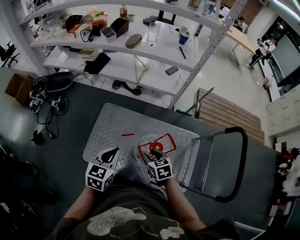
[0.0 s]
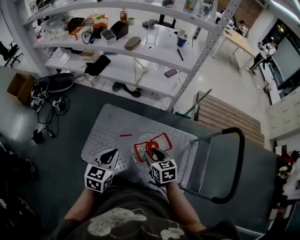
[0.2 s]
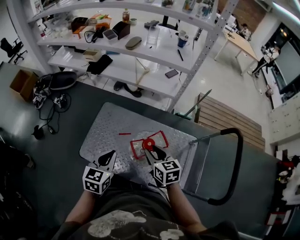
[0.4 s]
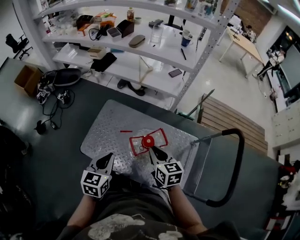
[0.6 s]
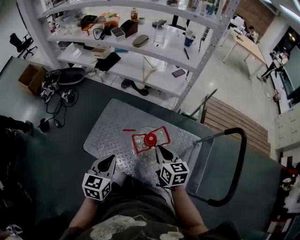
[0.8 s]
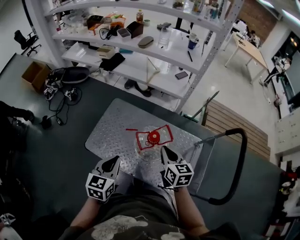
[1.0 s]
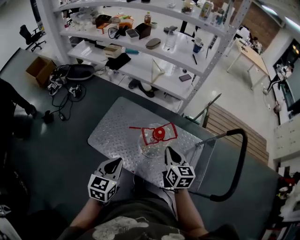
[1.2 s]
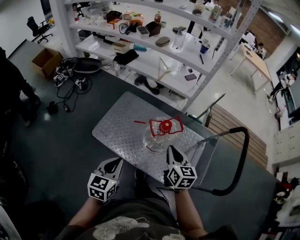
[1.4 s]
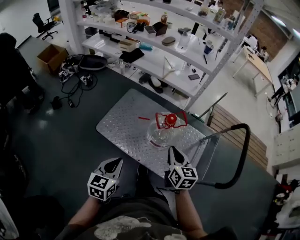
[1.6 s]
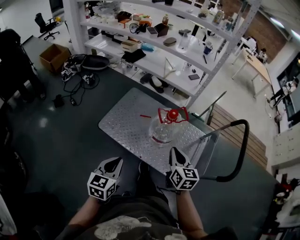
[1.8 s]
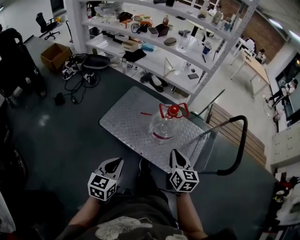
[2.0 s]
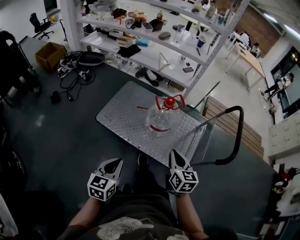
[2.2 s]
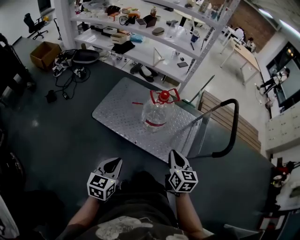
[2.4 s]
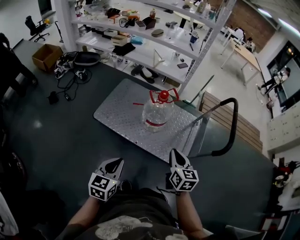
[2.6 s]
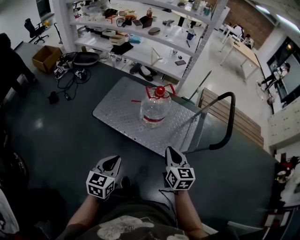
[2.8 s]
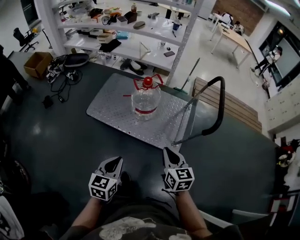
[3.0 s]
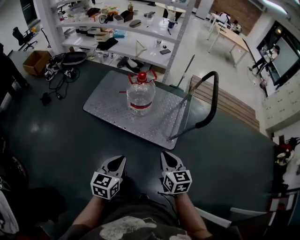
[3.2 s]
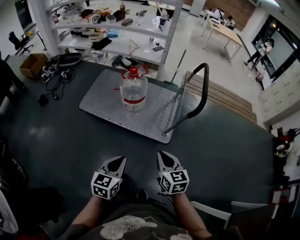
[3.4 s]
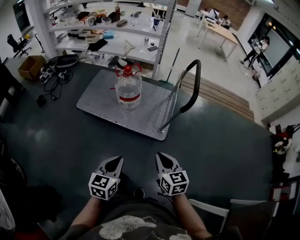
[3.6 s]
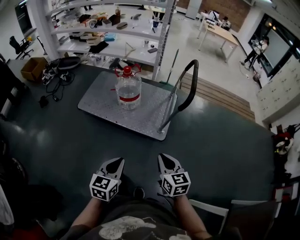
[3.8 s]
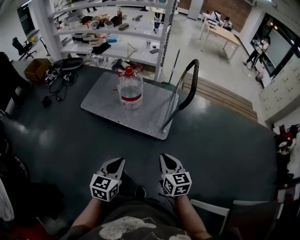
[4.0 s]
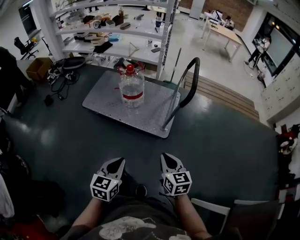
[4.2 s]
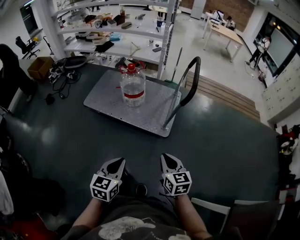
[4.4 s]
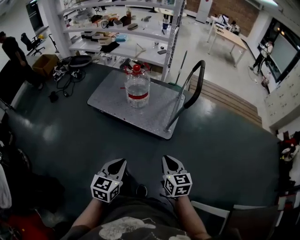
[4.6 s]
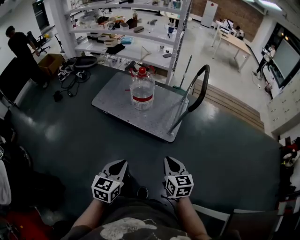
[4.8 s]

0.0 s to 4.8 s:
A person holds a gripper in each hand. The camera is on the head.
0.0 to 1.6 s: The right gripper travels backward and upward by roughly 25 cm, changes its angle by some 30 degrees, and closes its fingers. The left gripper shifts some 30 cm backward.
1.6 to 3.2 s: The left gripper is displaced backward and to the right by approximately 30 cm, while the right gripper travels backward by approximately 35 cm.
3.2 to 4.8 s: The grippers both shift backward and to the right by some 20 cm.

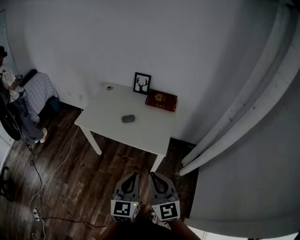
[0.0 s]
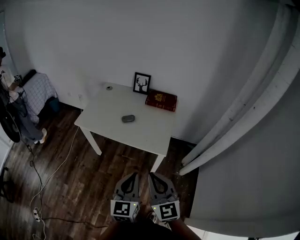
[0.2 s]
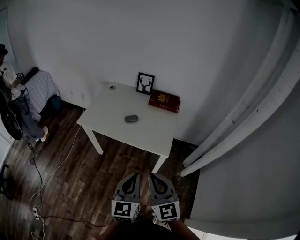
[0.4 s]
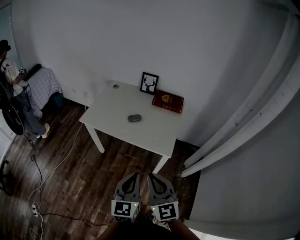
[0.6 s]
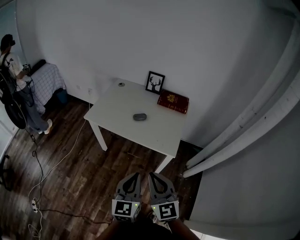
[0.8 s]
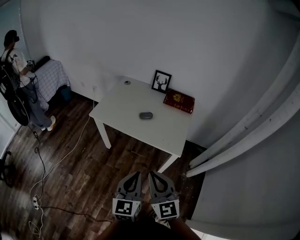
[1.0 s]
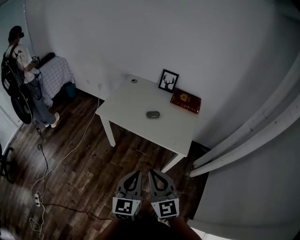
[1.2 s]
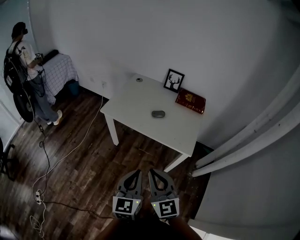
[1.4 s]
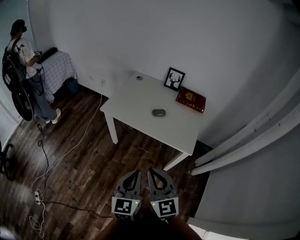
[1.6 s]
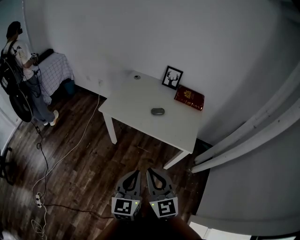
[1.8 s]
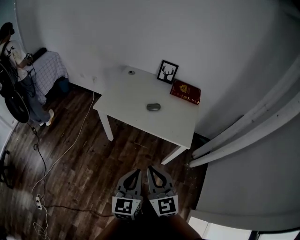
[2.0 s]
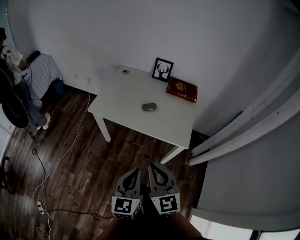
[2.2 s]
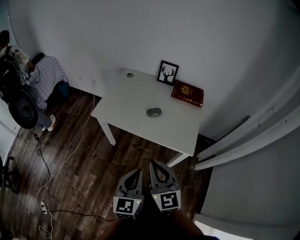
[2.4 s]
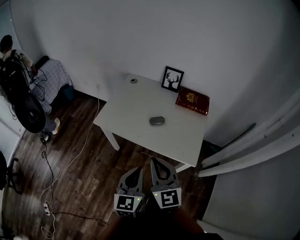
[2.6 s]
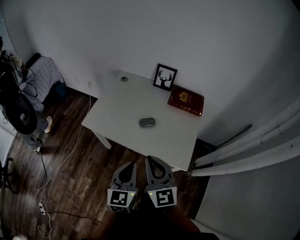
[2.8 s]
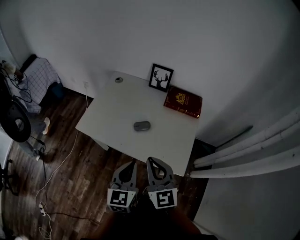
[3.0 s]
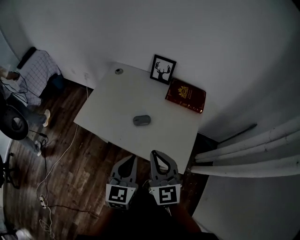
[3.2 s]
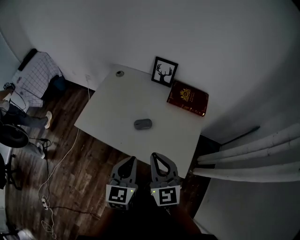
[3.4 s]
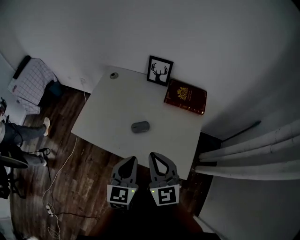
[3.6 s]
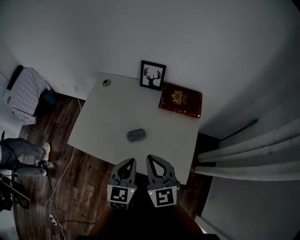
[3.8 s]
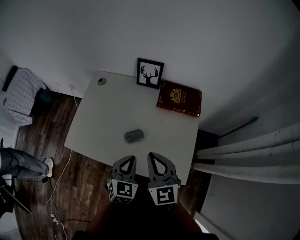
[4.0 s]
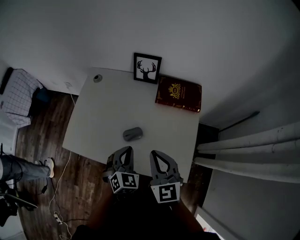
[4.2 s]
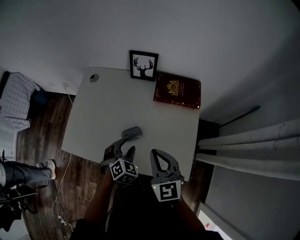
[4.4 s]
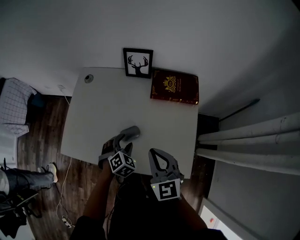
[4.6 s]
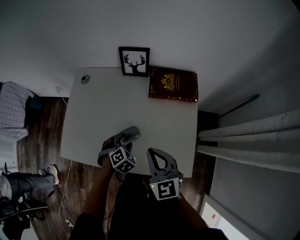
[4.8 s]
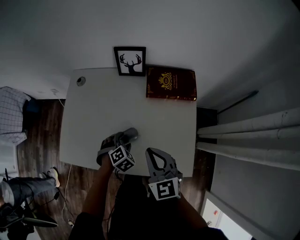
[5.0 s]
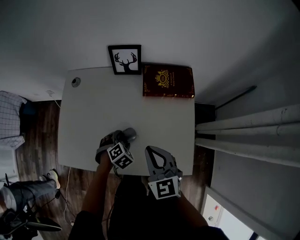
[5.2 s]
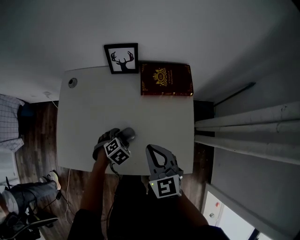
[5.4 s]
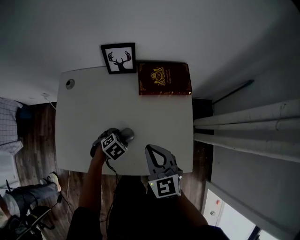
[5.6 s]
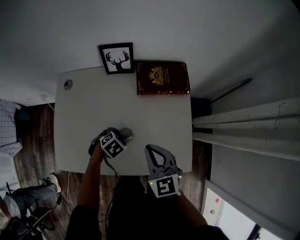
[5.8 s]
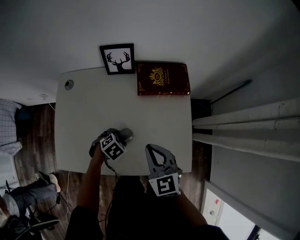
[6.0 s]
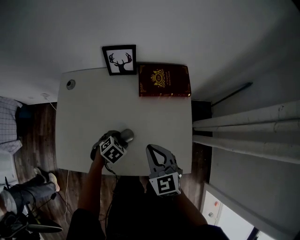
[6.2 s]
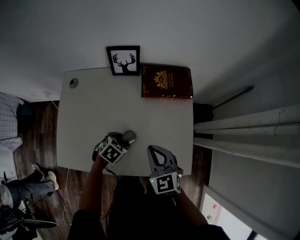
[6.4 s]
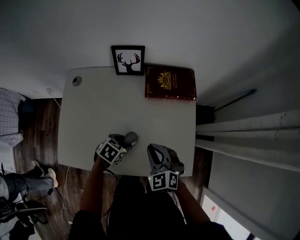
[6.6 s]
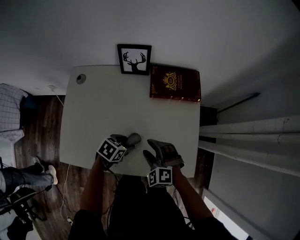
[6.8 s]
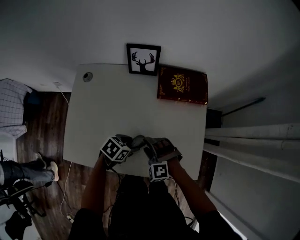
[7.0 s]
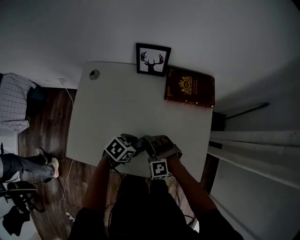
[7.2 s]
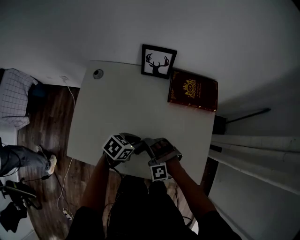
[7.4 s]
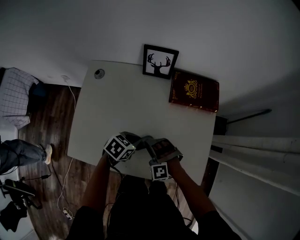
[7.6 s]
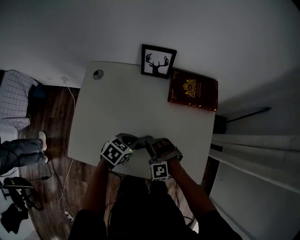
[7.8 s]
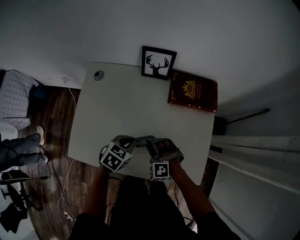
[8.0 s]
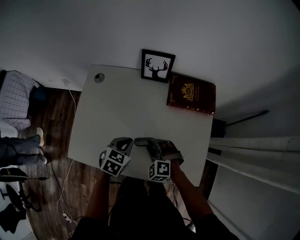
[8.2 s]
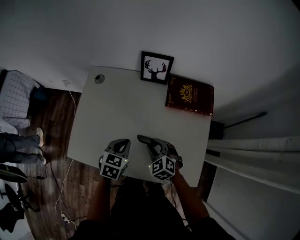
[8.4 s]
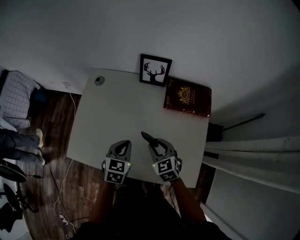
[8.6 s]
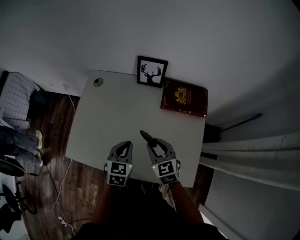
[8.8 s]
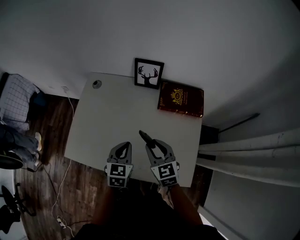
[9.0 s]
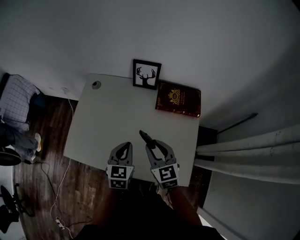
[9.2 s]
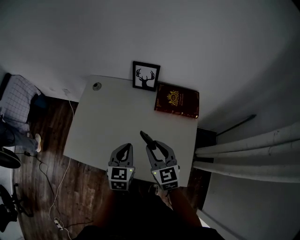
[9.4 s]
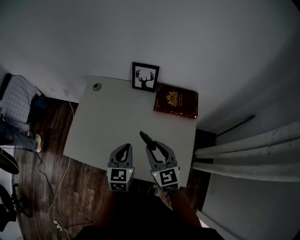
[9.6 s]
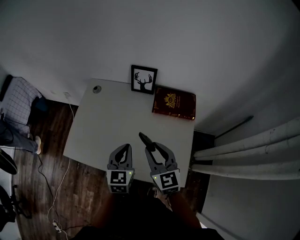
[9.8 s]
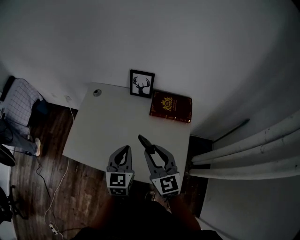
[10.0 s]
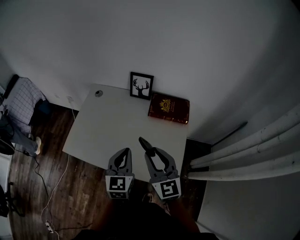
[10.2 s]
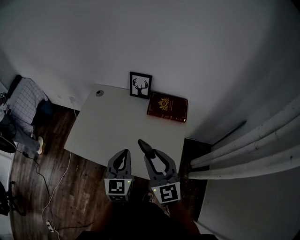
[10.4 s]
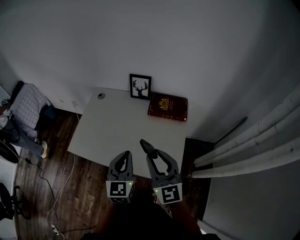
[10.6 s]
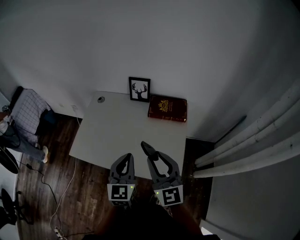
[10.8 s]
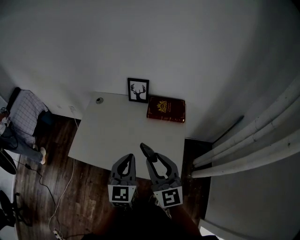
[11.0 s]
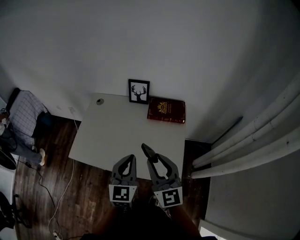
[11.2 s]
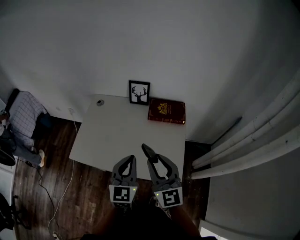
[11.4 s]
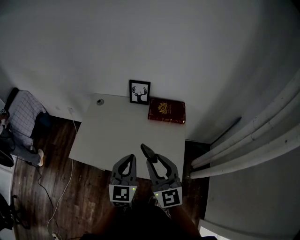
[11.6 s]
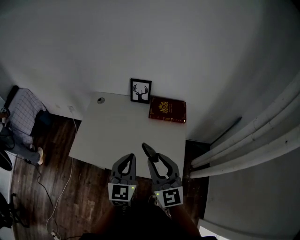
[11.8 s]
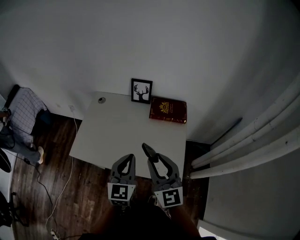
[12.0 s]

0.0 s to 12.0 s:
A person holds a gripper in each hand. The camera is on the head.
0.0 to 1.6 s: Both grippers travel together to the left, about 15 cm.
1.6 to 3.0 s: The grippers both shift forward and to the right by some 30 cm.
3.0 to 4.4 s: The right gripper is displaced forward and downward by some 15 cm, while the left gripper goes some 25 cm forward and downward, angles its fingers downward, by roughly 30 degrees, and opens up.
4.4 to 6.0 s: The right gripper ends up approximately 5 cm from where it was, while the left gripper shifts some 10 cm downward, and turns by roughly 40 degrees.
6.0 to 7.6 s: The left gripper shifts by approximately 5 cm, turns by some 30 degrees, and closes up, while the right gripper goes about 15 cm downward, twists about 70 degrees counterclockwise, seen from behind, and opens.
7.6 to 9.0 s: The two grippers go roughly 10 cm upward. The left gripper turns by about 50 degrees. Meanwhile the right gripper rotates around the line of its fingers by roughly 70 degrees, clockwise from behind.
9.0 to 10.4 s: The left gripper heads upward, backward and to the right, covering some 20 cm, and turns by approximately 20 degrees, while the right gripper goes approximately 25 cm upward and backward, and turns by approximately 30 degrees.
10.4 to 12.0 s: The right gripper changes place by approximately 5 cm, while the left gripper shifts by roughly 5 cm.

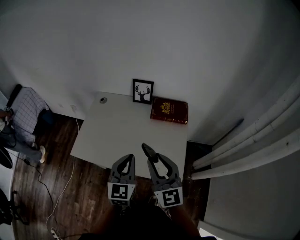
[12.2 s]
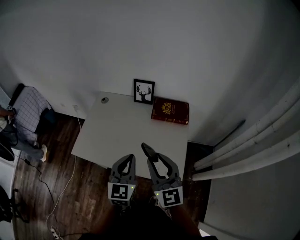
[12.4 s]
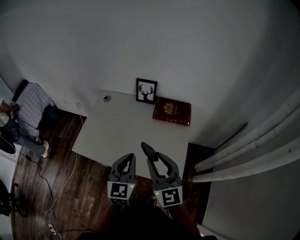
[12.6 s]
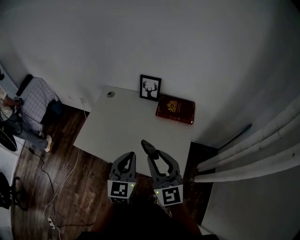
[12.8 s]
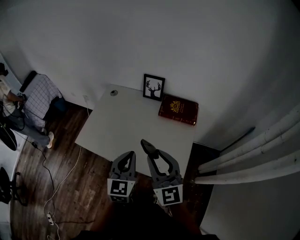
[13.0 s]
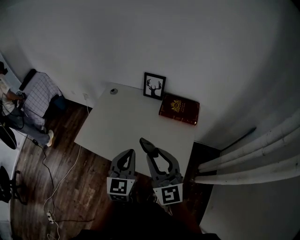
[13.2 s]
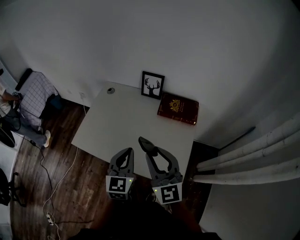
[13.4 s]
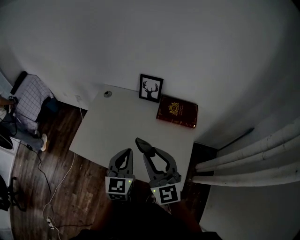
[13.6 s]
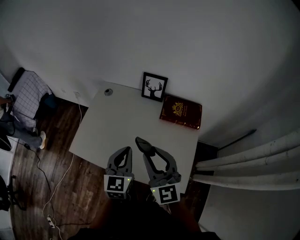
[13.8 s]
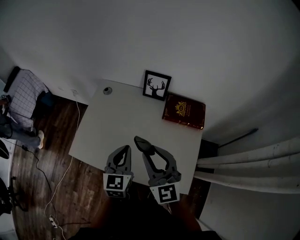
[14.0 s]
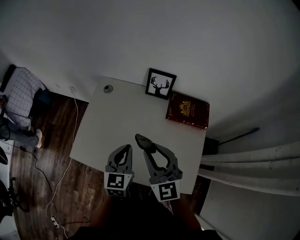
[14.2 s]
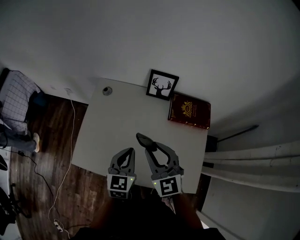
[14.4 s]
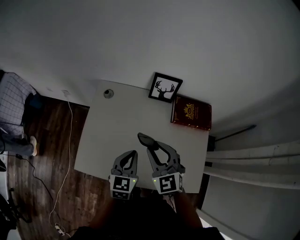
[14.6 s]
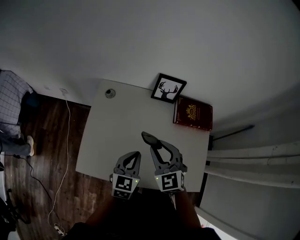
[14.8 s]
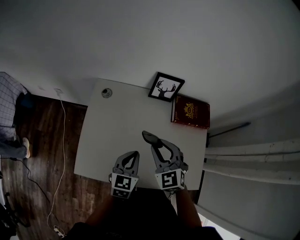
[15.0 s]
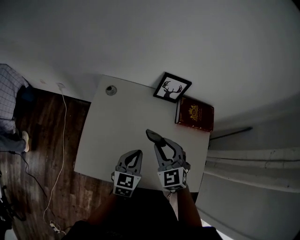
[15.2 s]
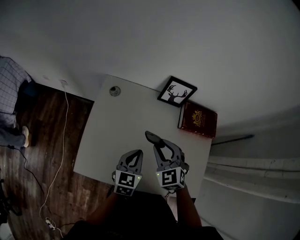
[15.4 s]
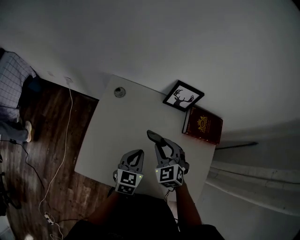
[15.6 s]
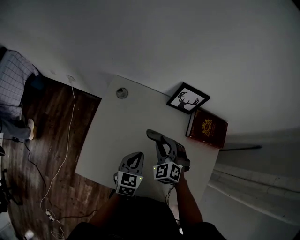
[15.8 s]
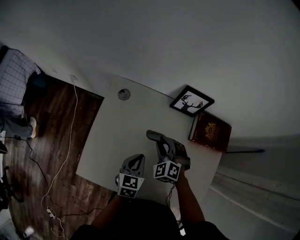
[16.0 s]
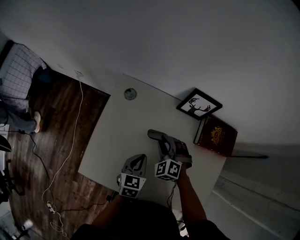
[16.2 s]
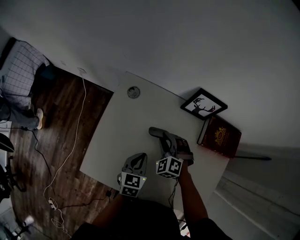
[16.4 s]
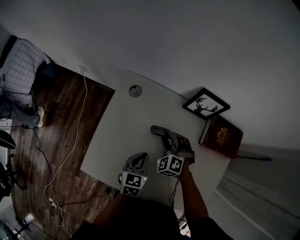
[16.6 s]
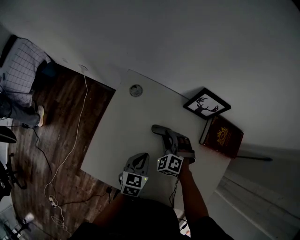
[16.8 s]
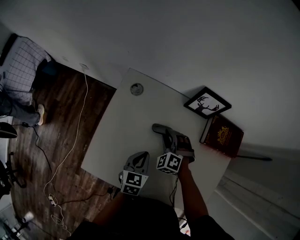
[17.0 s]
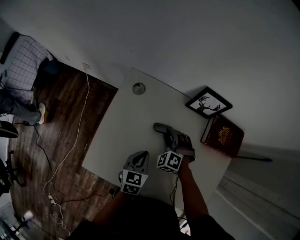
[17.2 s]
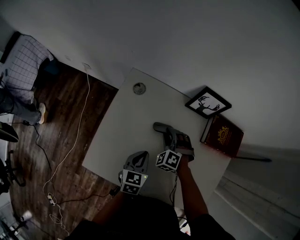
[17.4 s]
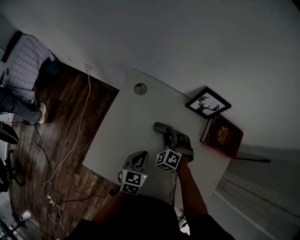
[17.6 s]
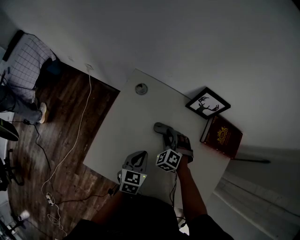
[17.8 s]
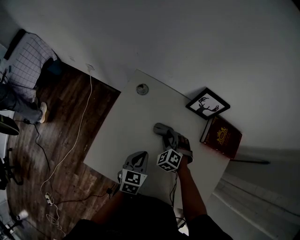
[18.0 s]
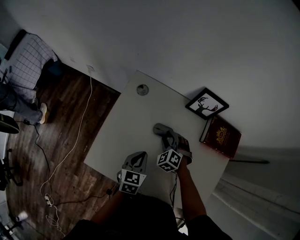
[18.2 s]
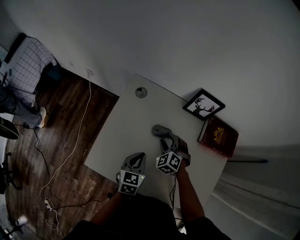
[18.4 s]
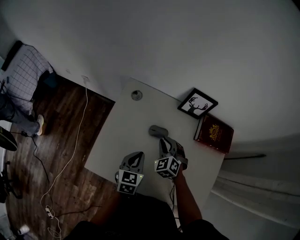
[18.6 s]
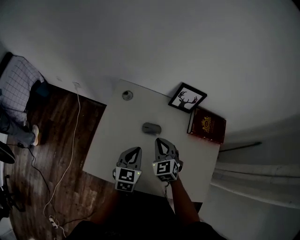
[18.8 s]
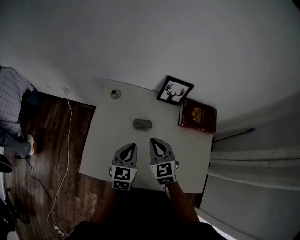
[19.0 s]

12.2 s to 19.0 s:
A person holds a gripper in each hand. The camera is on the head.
12.2 to 13.6 s: Both grippers travel together forward, some 5 cm.
13.6 to 15.0 s: Both grippers move forward, to the left and downward, roughly 25 cm. The left gripper changes its angle by some 30 degrees. Meanwhile the right gripper changes its angle by about 30 degrees.
15.0 to 16.2 s: The left gripper travels downward and forward by about 10 cm. The right gripper moves downward and forward, about 20 cm, and rotates roughly 30 degrees.
16.2 to 17.6 s: There are only small adjustments of the grippers.
17.6 to 19.0 s: The right gripper shifts roughly 20 cm upward and backward, rotates around the line of its fingers by about 40 degrees, clockwise from behind, and closes up; the left gripper is displaced upward by approximately 10 cm.
